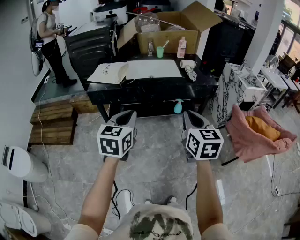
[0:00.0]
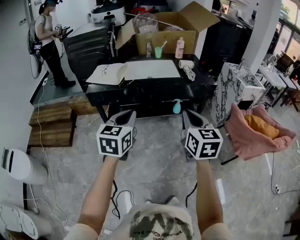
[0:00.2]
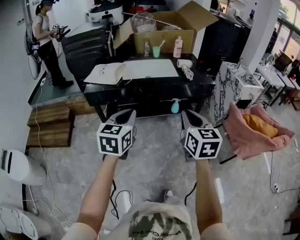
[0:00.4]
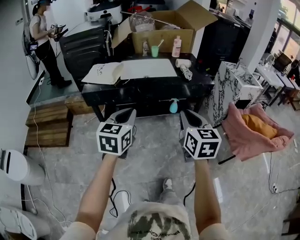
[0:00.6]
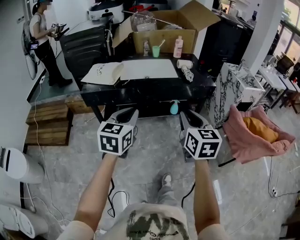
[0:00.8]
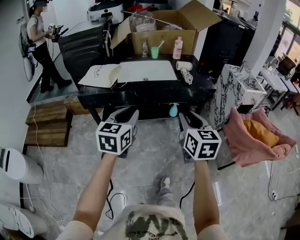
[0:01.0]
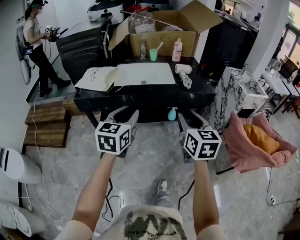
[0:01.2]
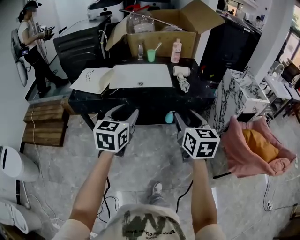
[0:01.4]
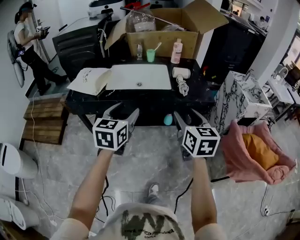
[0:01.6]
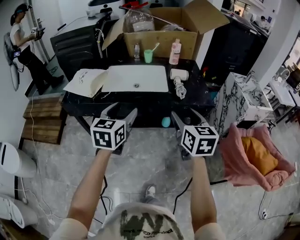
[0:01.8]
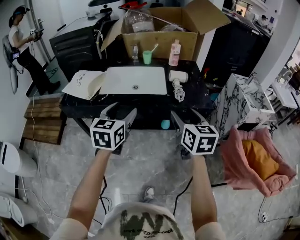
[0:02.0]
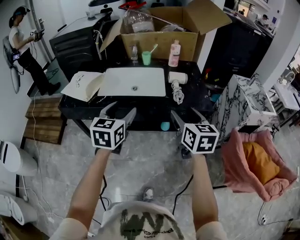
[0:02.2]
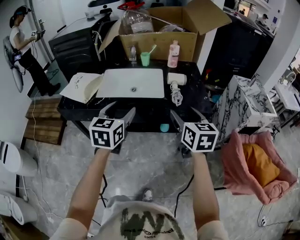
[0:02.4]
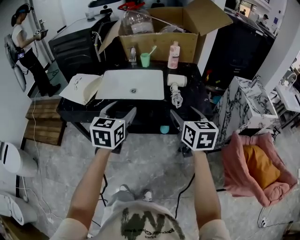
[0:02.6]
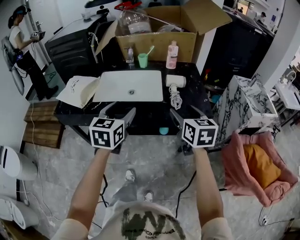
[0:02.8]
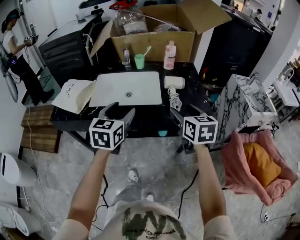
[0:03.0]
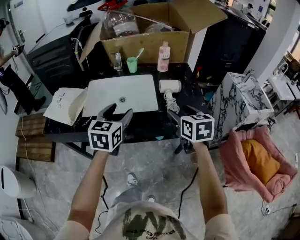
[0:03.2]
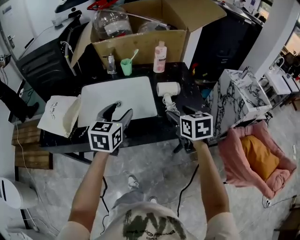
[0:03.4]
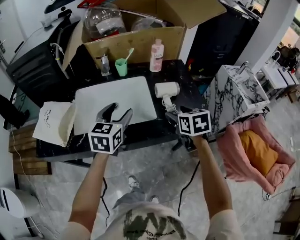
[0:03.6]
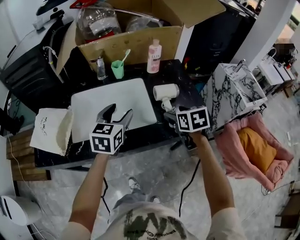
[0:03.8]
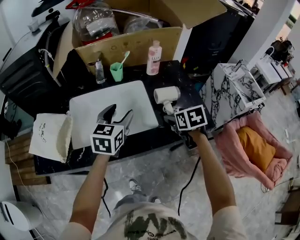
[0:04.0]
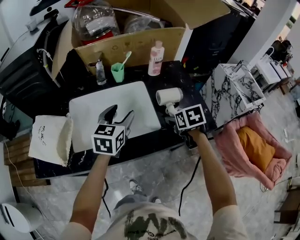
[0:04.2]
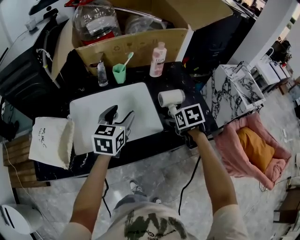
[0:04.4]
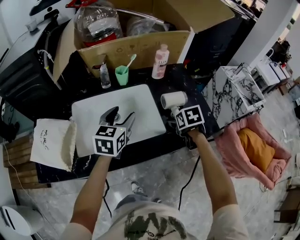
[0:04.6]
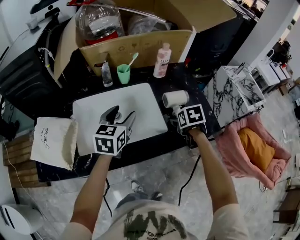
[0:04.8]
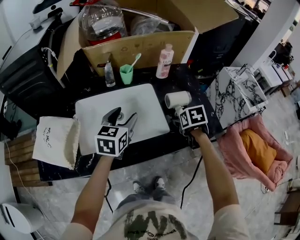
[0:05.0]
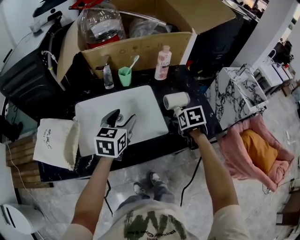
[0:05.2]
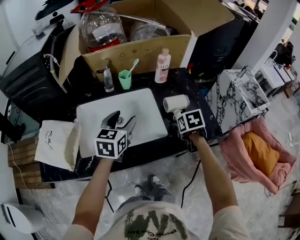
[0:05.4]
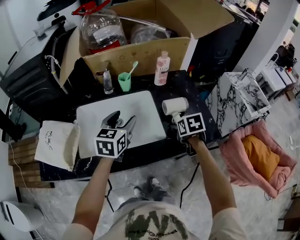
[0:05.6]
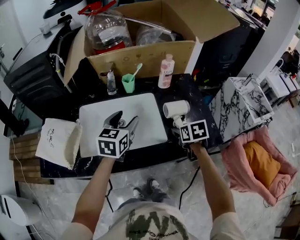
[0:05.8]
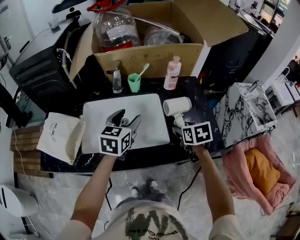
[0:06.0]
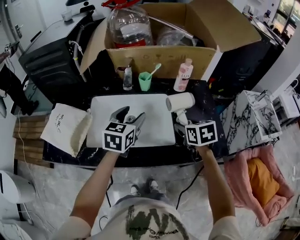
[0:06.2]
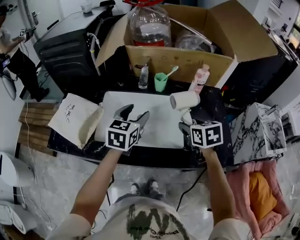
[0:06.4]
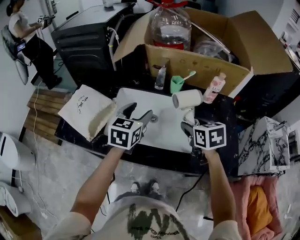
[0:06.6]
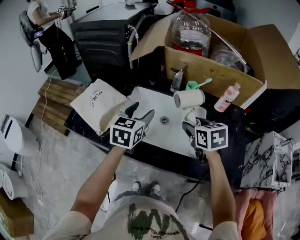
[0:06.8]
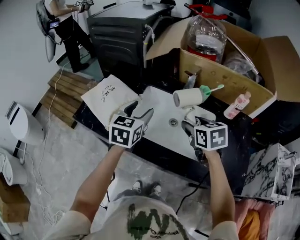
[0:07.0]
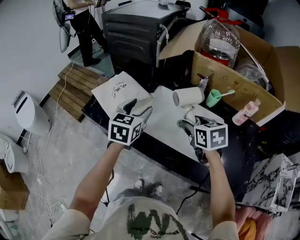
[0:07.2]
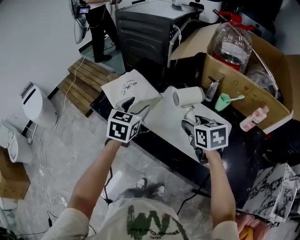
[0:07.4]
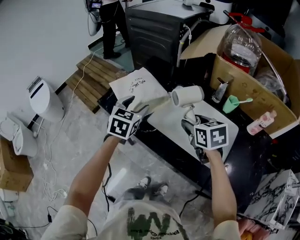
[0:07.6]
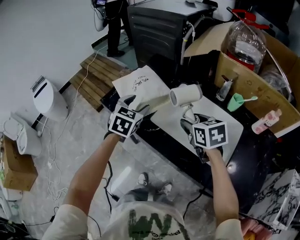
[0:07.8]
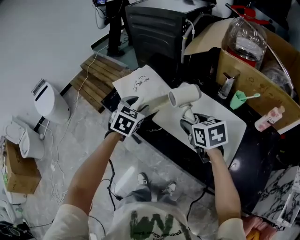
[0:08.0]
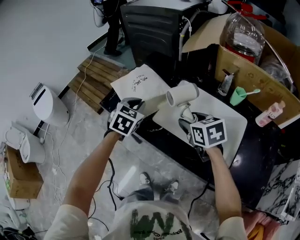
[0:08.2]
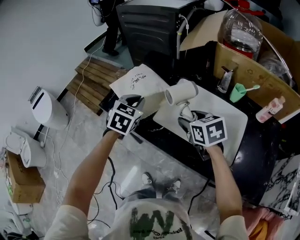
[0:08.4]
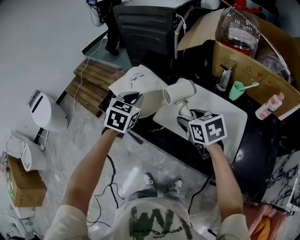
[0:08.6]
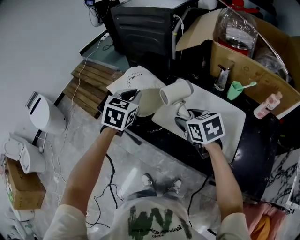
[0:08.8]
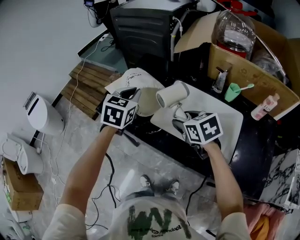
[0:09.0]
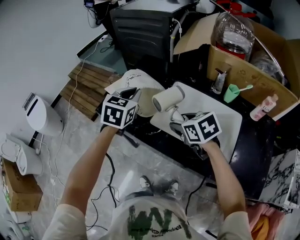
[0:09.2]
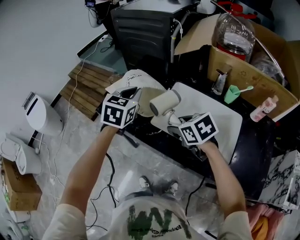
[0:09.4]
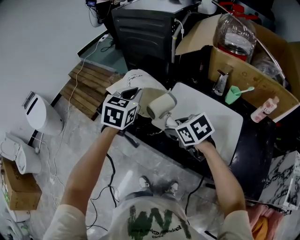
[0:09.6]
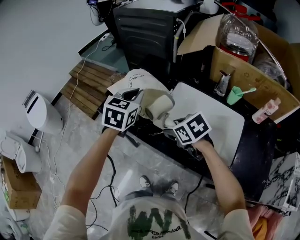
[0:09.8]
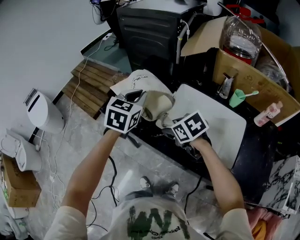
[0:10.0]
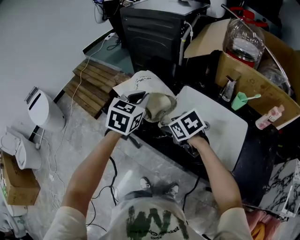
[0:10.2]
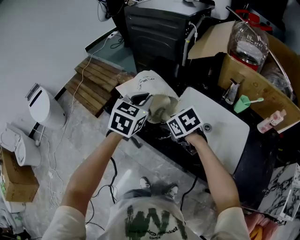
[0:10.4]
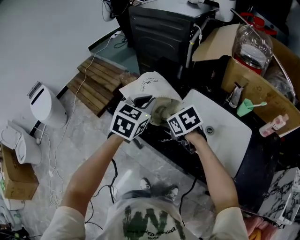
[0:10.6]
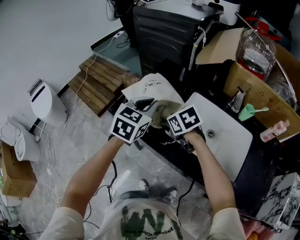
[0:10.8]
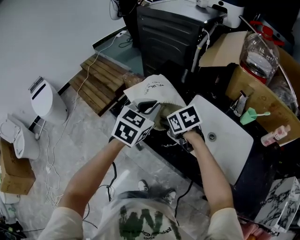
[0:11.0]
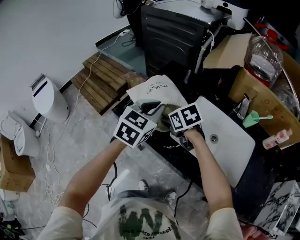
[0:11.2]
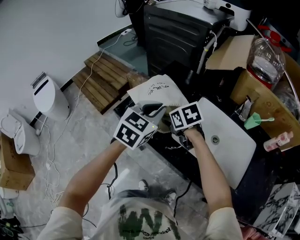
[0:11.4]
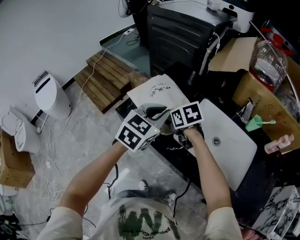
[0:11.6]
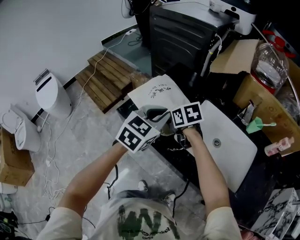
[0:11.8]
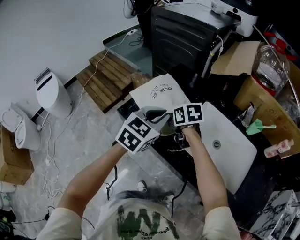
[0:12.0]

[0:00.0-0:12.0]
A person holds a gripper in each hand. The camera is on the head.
0:00.0 to 0:01.6: The two grippers go roughly 20 cm forward and to the right. The left gripper opens. Meanwhile the right gripper opens.
0:01.6 to 0:03.0: The two grippers go some 15 cm forward.
0:03.0 to 0:04.4: The right gripper travels forward and downward by roughly 25 cm, and angles its fingers downward, by about 40 degrees. The left gripper is displaced forward by approximately 20 cm.
0:04.4 to 0:06.0: The grippers move only a little.
0:06.0 to 0:07.6: The right gripper moves about 35 cm, and rotates about 50 degrees. Meanwhile the left gripper shifts by about 30 cm, and rotates some 40 degrees.
0:07.6 to 0:09.0: The left gripper ends up some 5 cm from where it was, and closes. Meanwhile the right gripper shifts some 5 cm to the left.
0:09.0 to 0:10.4: The right gripper travels to the left, downward and forward by approximately 10 cm.
0:10.4 to 0:12.0: The right gripper heads forward and to the left, covering approximately 10 cm.

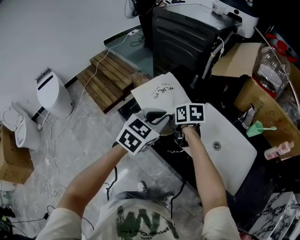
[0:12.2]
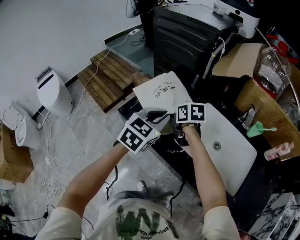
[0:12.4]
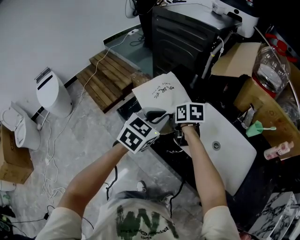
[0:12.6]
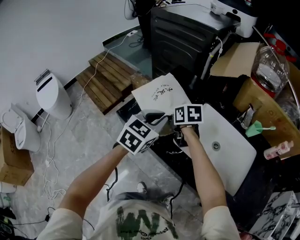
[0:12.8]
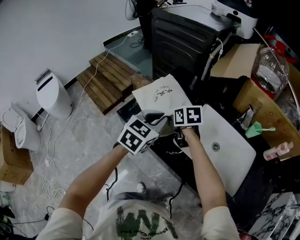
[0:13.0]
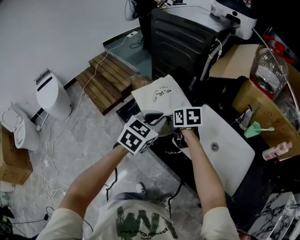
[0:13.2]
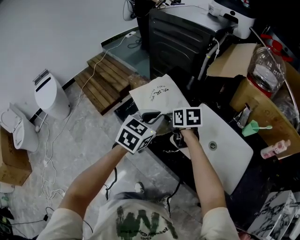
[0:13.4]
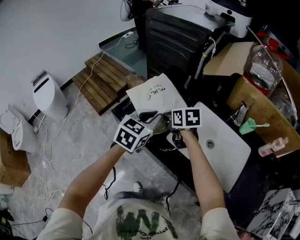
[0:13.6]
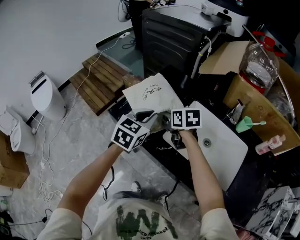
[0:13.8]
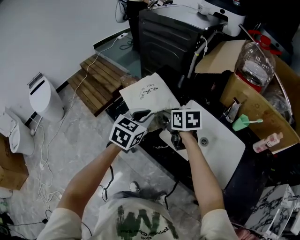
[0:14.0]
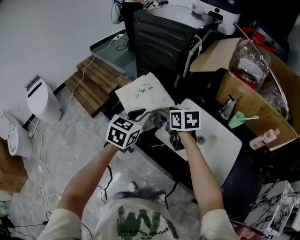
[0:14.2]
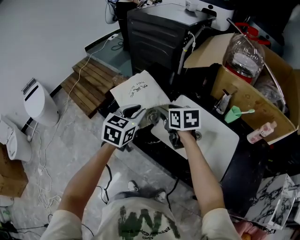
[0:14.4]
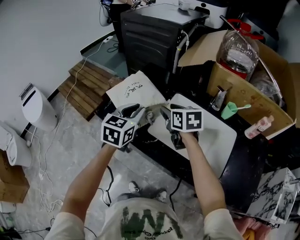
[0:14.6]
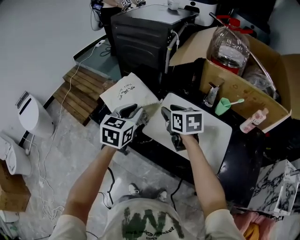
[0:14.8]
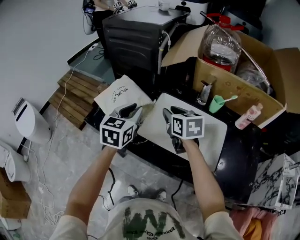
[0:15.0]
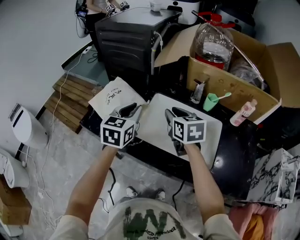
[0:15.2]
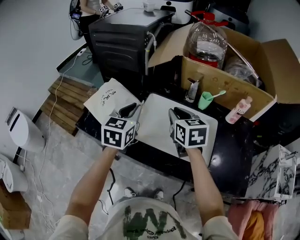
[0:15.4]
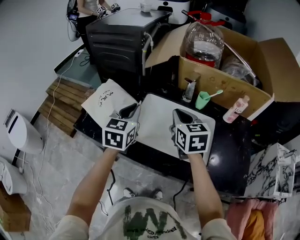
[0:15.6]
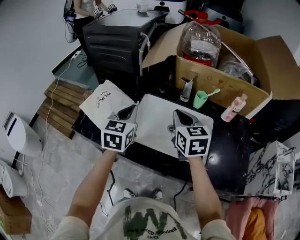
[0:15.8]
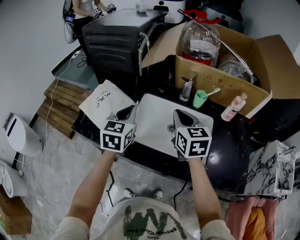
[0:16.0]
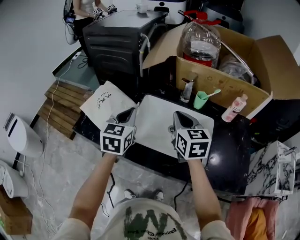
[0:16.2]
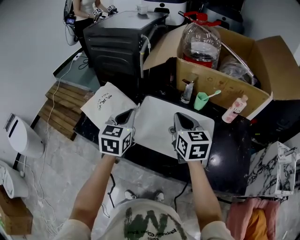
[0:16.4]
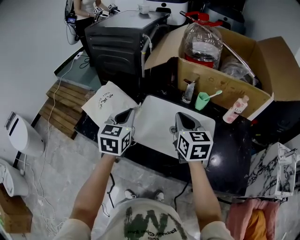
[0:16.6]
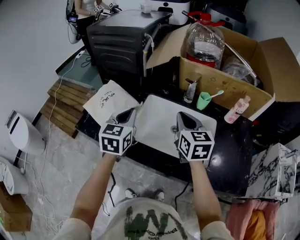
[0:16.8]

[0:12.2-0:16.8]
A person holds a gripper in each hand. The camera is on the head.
0:12.2 to 0:13.8: The right gripper changes place by some 5 cm.
0:13.8 to 0:15.2: The left gripper is displaced to the right and upward by roughly 10 cm. Meanwhile the right gripper is displaced to the right, upward and backward by approximately 20 cm, turns by roughly 20 degrees, and closes.
0:15.2 to 0:16.8: The right gripper shifts approximately 5 cm to the right.

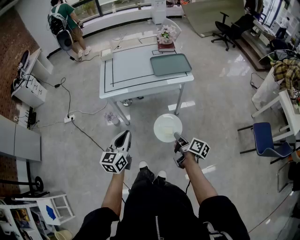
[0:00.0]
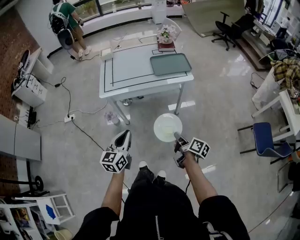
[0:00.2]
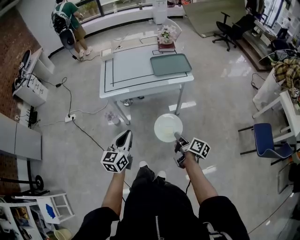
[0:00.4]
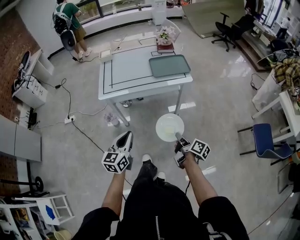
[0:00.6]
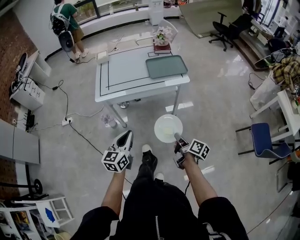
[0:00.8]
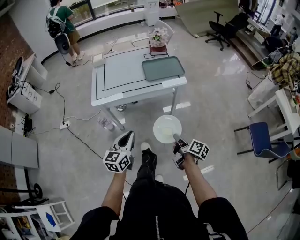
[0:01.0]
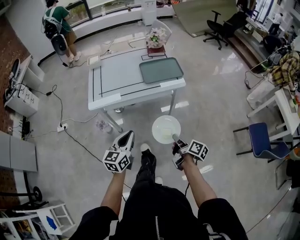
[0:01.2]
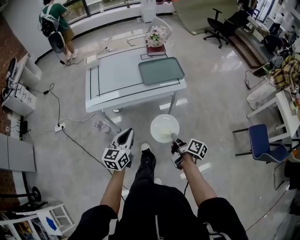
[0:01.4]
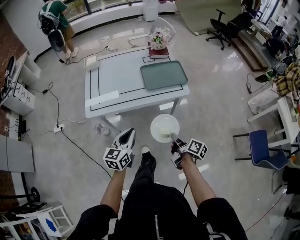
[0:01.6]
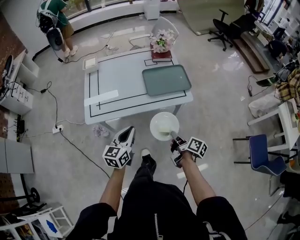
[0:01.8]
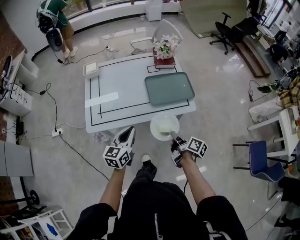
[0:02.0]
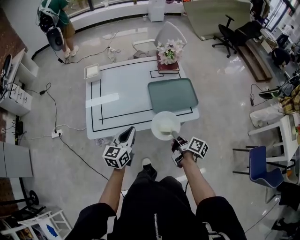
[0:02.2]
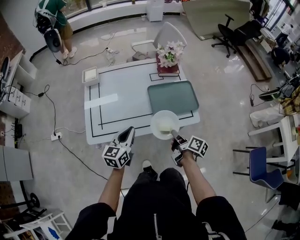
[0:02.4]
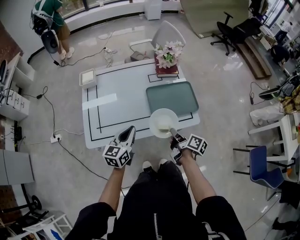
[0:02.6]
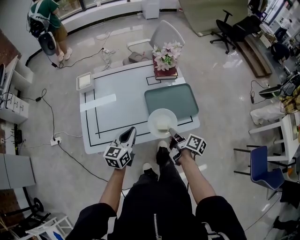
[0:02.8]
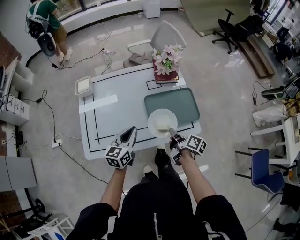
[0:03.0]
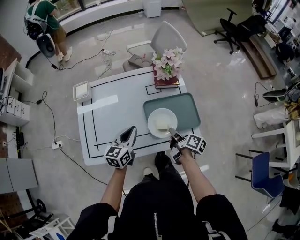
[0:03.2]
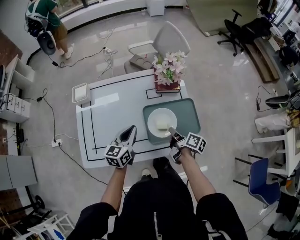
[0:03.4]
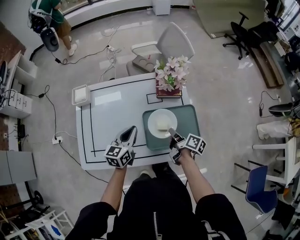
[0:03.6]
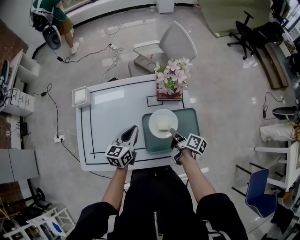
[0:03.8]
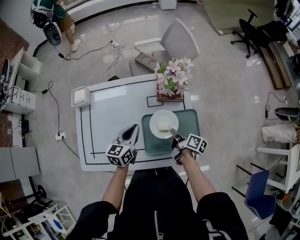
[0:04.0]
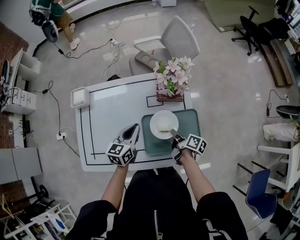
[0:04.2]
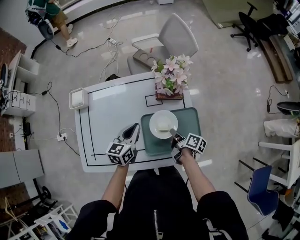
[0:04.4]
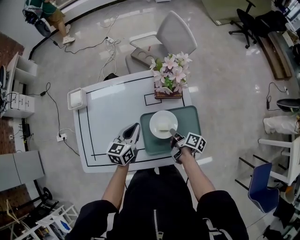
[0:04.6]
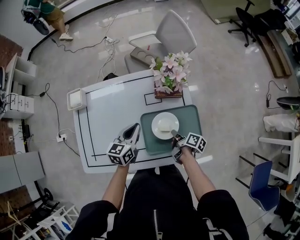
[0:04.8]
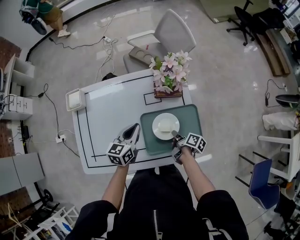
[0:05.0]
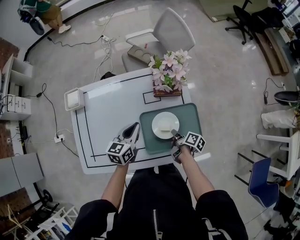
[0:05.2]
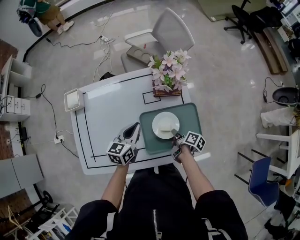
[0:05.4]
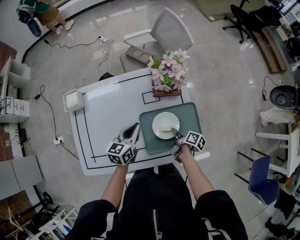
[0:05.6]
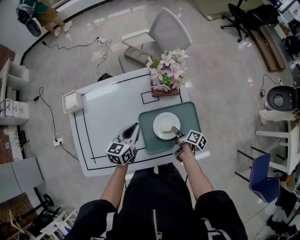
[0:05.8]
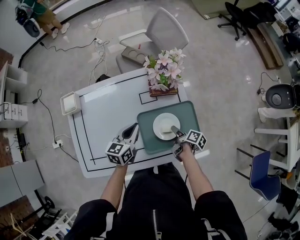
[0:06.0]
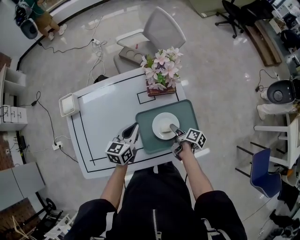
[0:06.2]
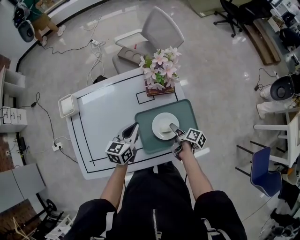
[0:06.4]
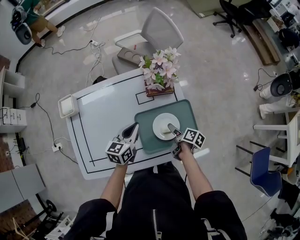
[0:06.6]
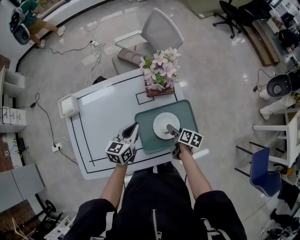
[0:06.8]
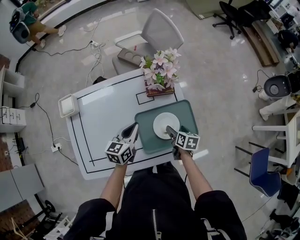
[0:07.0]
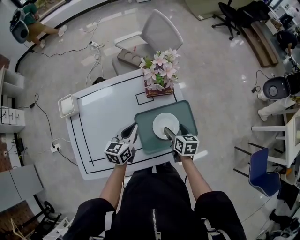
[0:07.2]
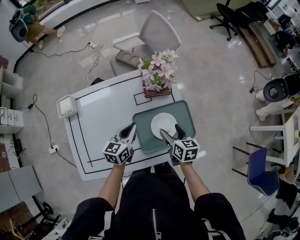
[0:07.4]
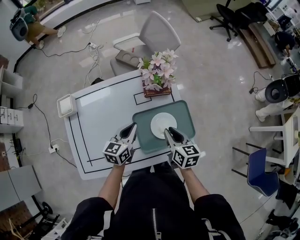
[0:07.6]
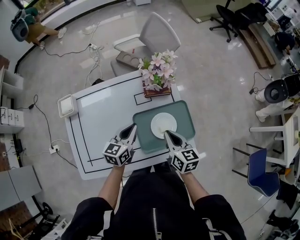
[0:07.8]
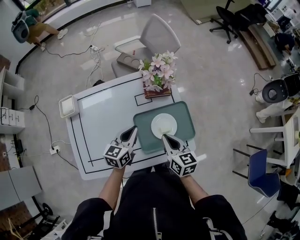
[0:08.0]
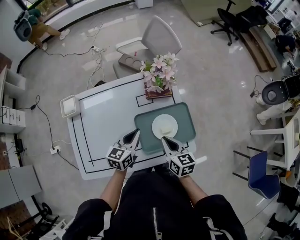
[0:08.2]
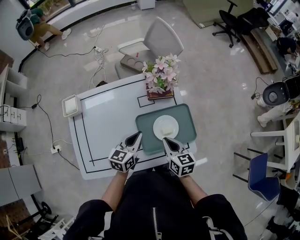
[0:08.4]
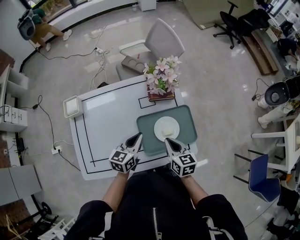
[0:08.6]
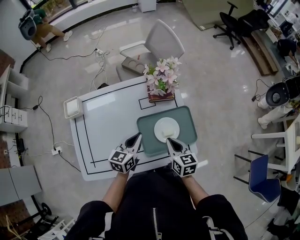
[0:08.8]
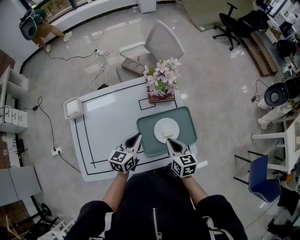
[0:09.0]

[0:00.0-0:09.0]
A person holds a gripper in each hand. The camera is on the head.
0:00.0 to 0:01.6: The grippers both shift forward by some 20 cm.
0:01.6 to 0:03.0: Both grippers move forward, about 35 cm.
0:03.0 to 0:04.4: The right gripper travels forward and downward by some 20 cm. Meanwhile the left gripper is displaced forward and to the right by roughly 20 cm.
0:04.4 to 0:06.0: The right gripper changes place by roughly 5 cm, and opens.
0:06.0 to 0:07.6: The right gripper travels upward by roughly 15 cm, rotates around the line of its fingers by some 60 degrees, counterclockwise from behind, and opens, then closes again.
0:07.6 to 0:09.0: The grippers move only a little.
